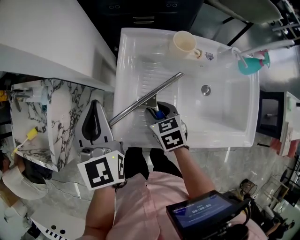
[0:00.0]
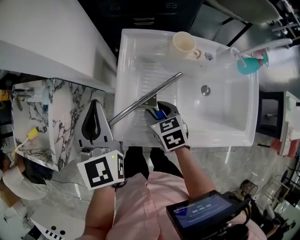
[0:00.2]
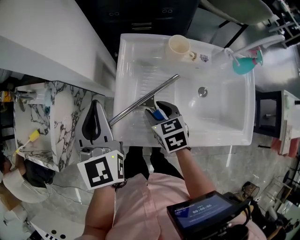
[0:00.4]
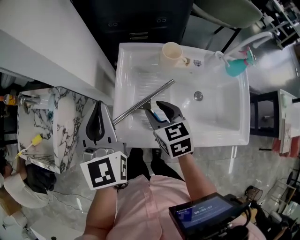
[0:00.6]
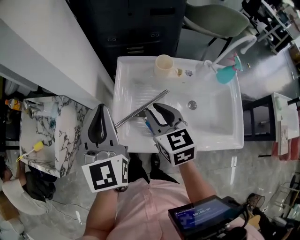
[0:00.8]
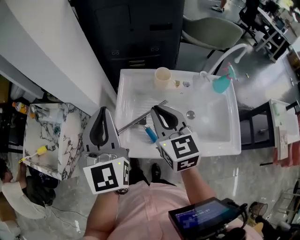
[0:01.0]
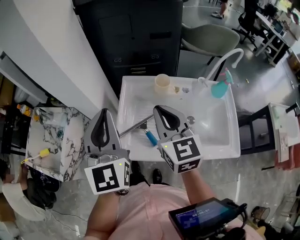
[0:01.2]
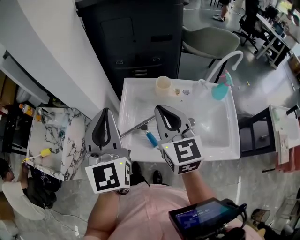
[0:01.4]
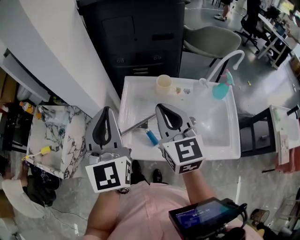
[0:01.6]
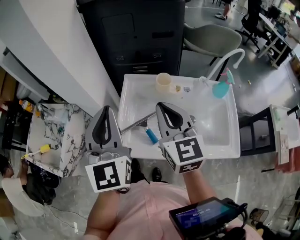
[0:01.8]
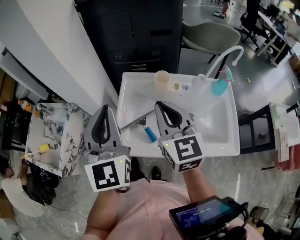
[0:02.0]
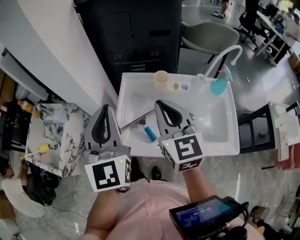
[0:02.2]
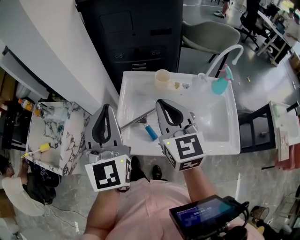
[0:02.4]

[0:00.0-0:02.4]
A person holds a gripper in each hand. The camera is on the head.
0.0 to 1.2 s: The right gripper travels upward by some 30 cm, angles its fingers upward, by roughly 40 degrees, and closes its fingers; the left gripper moves upward and backward, about 20 cm, and rotates about 20 degrees.
1.2 to 2.4 s: There are only small adjustments of the grippers.

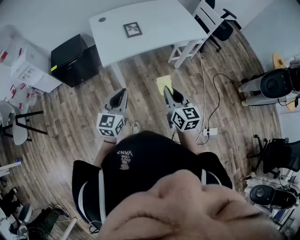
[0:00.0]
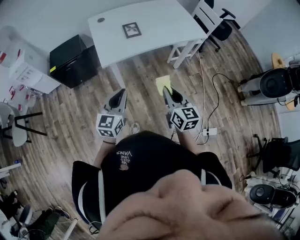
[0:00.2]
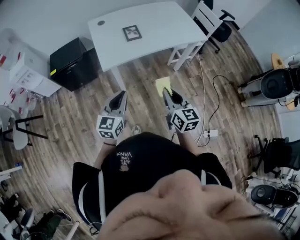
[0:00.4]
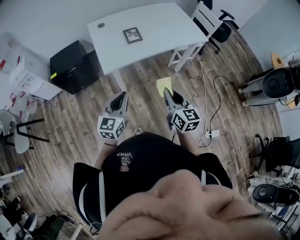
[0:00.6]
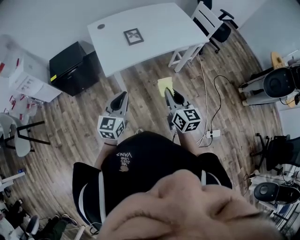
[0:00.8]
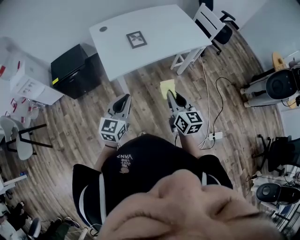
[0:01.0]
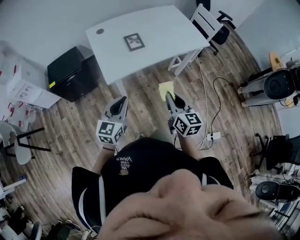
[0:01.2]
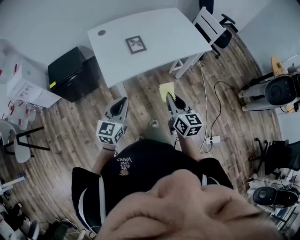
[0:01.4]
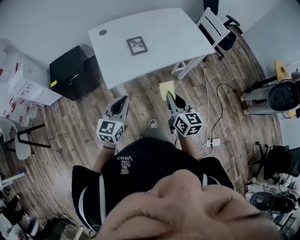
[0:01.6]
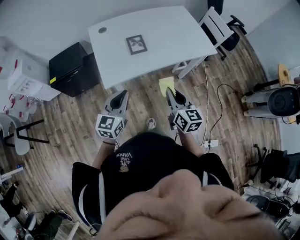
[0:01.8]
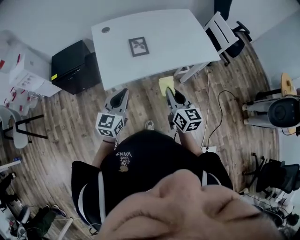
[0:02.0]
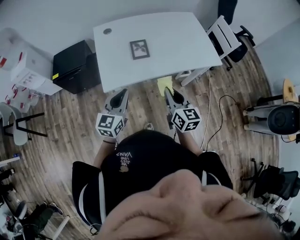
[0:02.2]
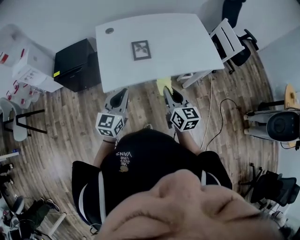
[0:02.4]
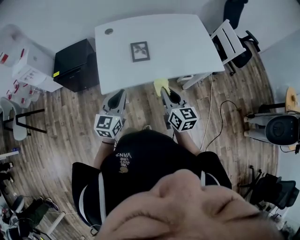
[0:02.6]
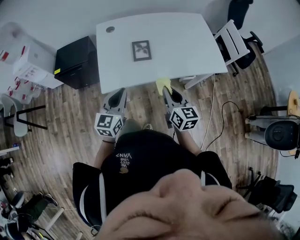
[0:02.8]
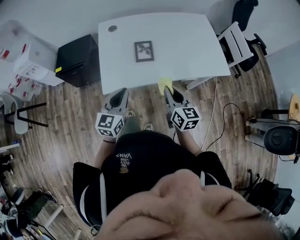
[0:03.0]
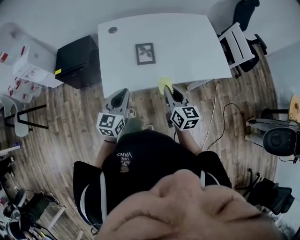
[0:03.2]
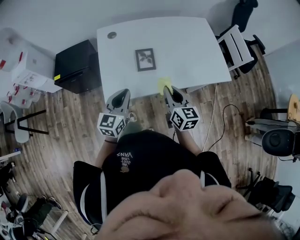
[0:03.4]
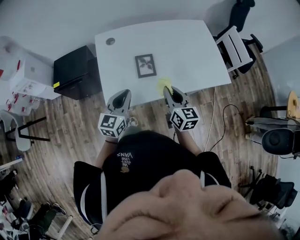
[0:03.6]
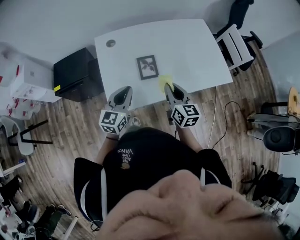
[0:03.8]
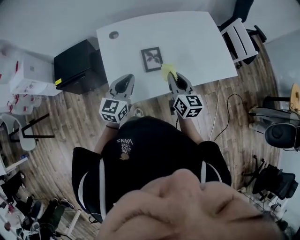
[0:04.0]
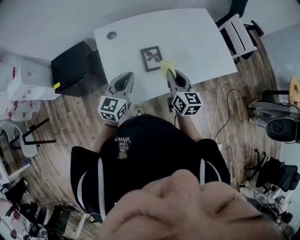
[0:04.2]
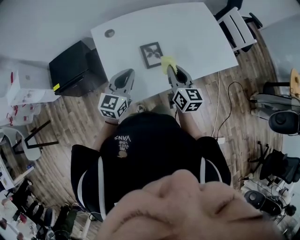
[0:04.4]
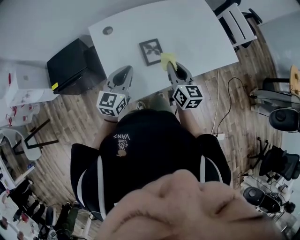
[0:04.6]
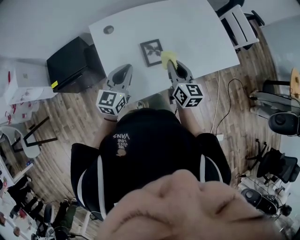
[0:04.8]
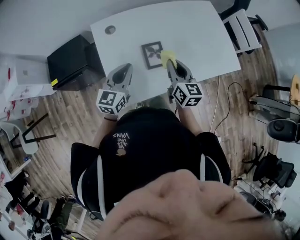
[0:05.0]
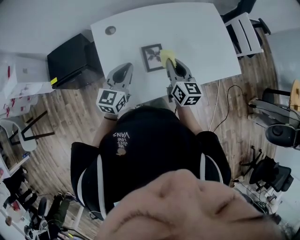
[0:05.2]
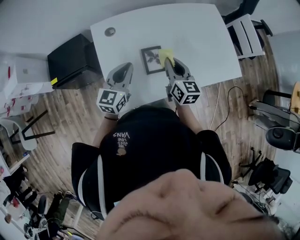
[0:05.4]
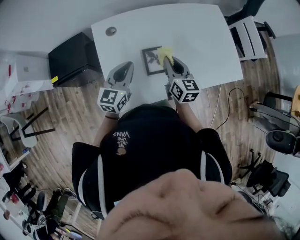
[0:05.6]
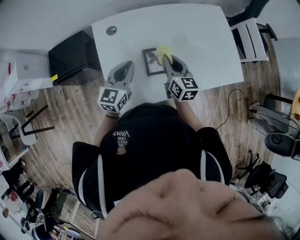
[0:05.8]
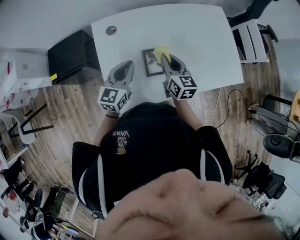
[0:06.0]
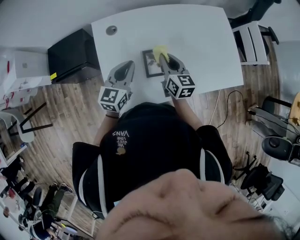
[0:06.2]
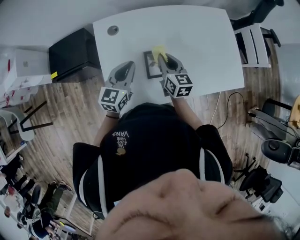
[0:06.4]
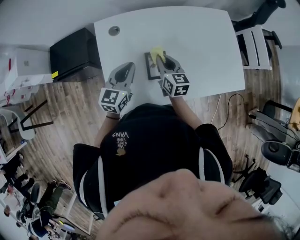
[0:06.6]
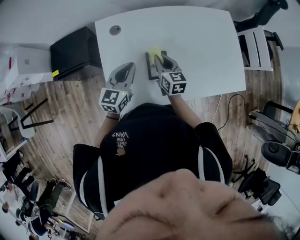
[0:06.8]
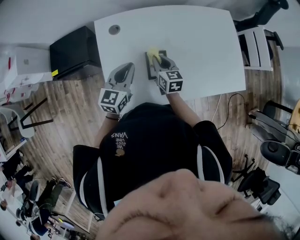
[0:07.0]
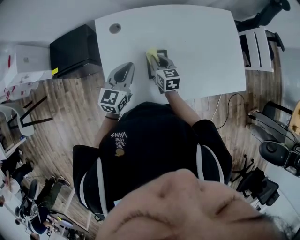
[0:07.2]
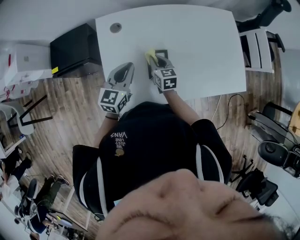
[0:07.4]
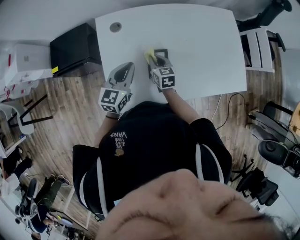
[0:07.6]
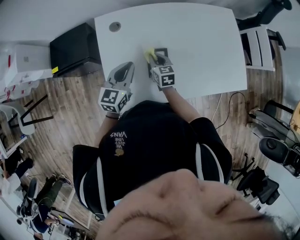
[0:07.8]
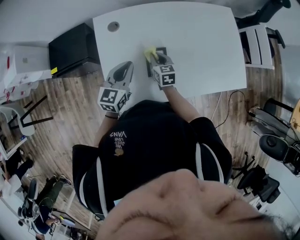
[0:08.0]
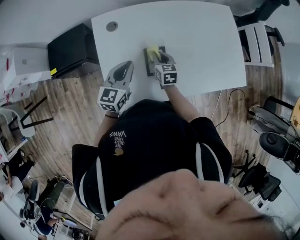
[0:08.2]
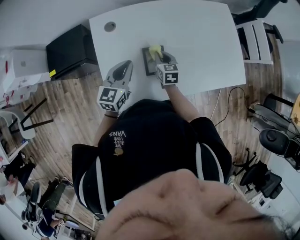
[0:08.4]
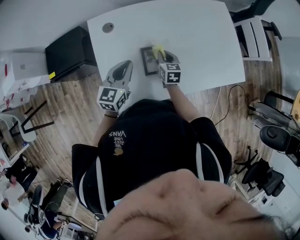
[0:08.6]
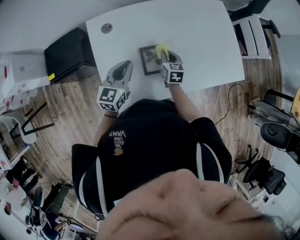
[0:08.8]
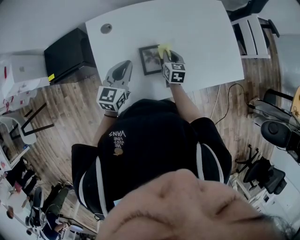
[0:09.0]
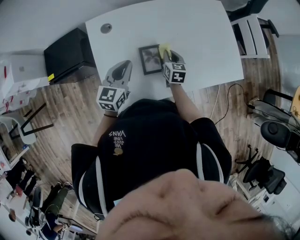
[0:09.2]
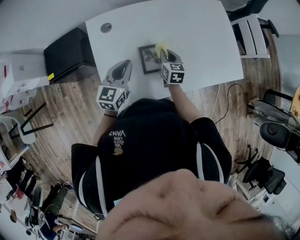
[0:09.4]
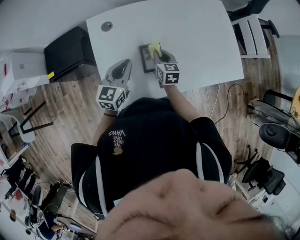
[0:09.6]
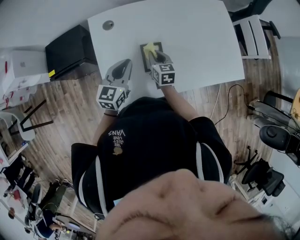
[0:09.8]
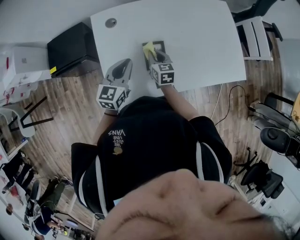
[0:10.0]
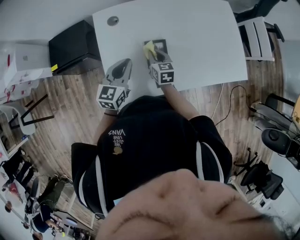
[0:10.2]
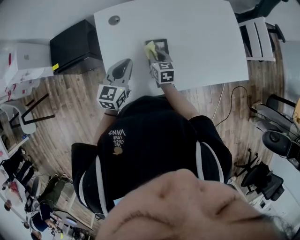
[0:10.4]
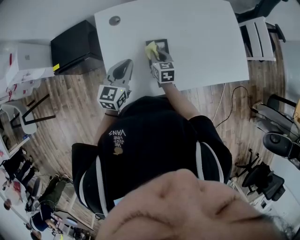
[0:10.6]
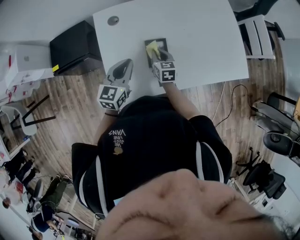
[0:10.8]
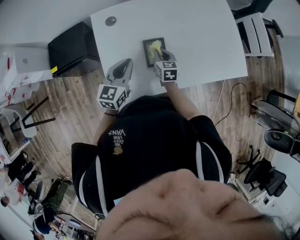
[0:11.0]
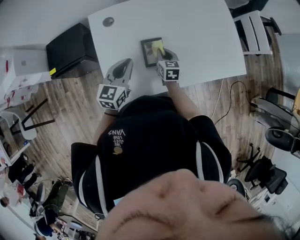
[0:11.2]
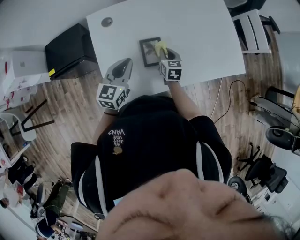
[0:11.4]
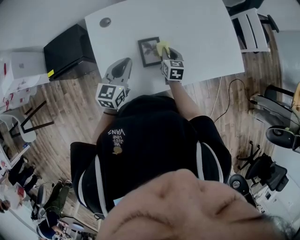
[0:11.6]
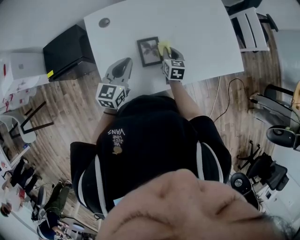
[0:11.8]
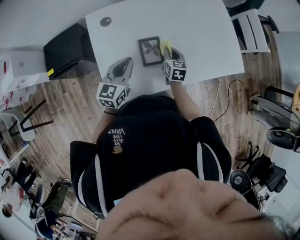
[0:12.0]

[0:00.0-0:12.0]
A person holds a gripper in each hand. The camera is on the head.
0.0 to 1.6 s: Both grippers travel together forward, roughly 15 cm.
1.6 to 3.0 s: The two grippers go about 15 cm forward.
3.0 to 4.4 s: The two grippers go roughly 20 cm forward and to the left.
4.4 to 6.0 s: Both grippers travel together forward, approximately 10 cm.
6.0 to 7.6 s: The right gripper shifts roughly 15 cm downward and to the left.
7.6 to 9.0 s: The right gripper travels to the right by roughly 10 cm.
9.0 to 10.4 s: The right gripper is displaced to the left by about 10 cm.
10.4 to 12.0 s: The right gripper moves to the right, some 10 cm.

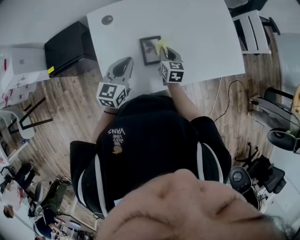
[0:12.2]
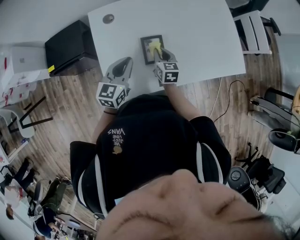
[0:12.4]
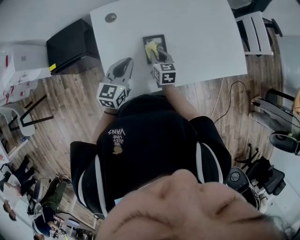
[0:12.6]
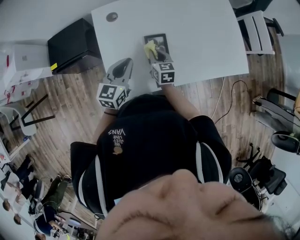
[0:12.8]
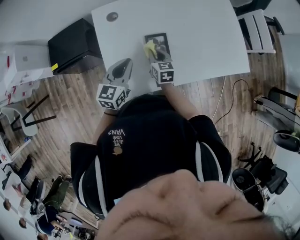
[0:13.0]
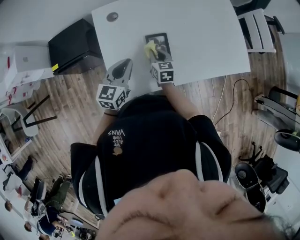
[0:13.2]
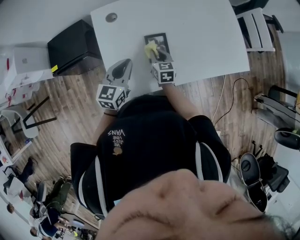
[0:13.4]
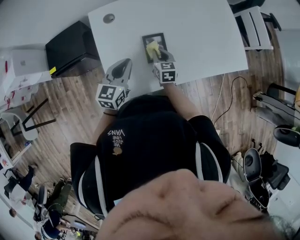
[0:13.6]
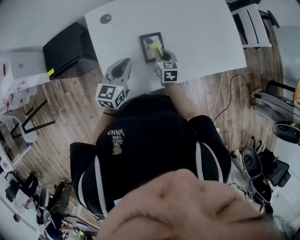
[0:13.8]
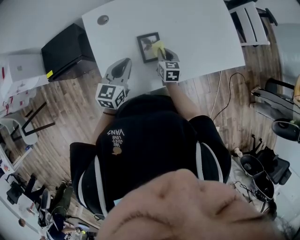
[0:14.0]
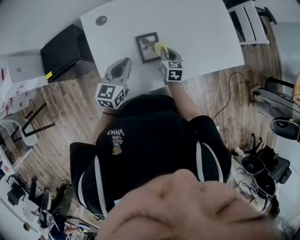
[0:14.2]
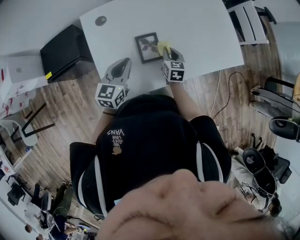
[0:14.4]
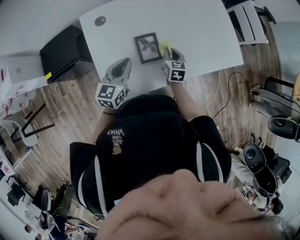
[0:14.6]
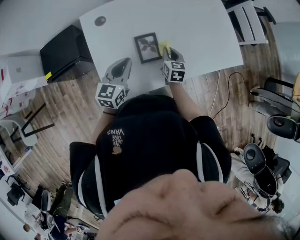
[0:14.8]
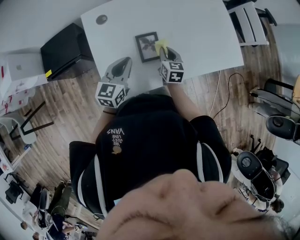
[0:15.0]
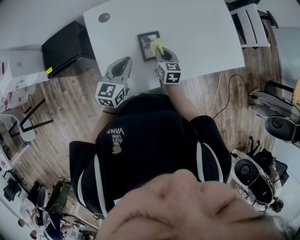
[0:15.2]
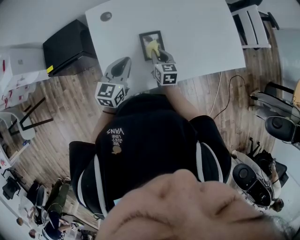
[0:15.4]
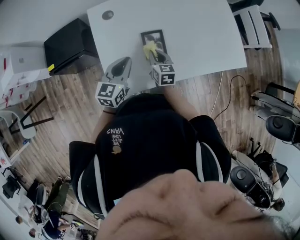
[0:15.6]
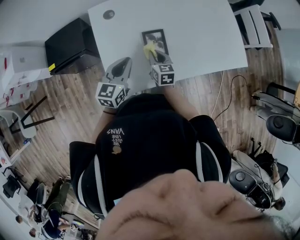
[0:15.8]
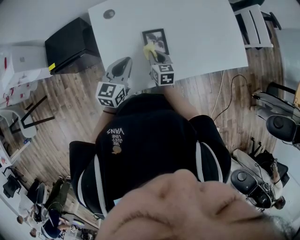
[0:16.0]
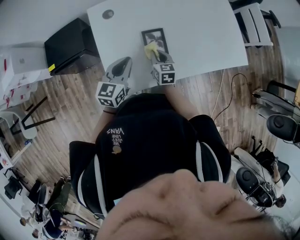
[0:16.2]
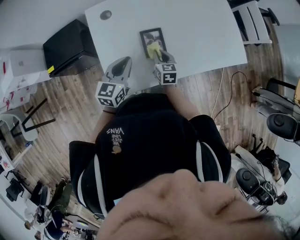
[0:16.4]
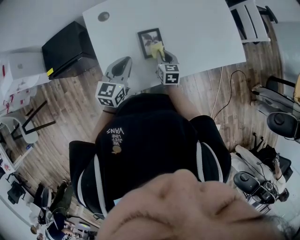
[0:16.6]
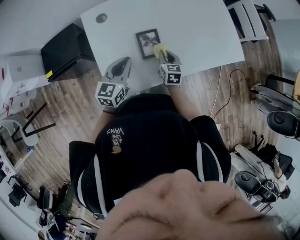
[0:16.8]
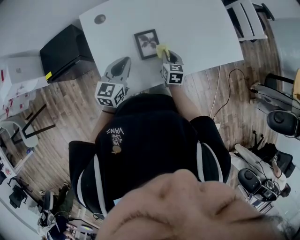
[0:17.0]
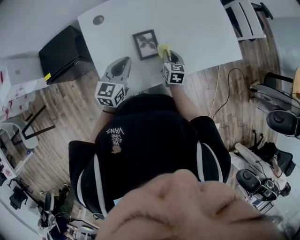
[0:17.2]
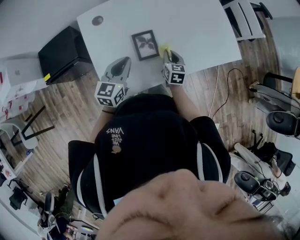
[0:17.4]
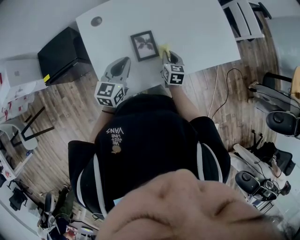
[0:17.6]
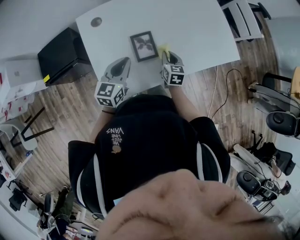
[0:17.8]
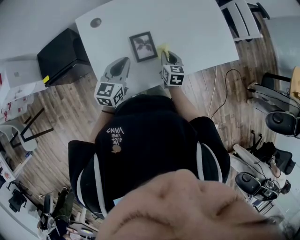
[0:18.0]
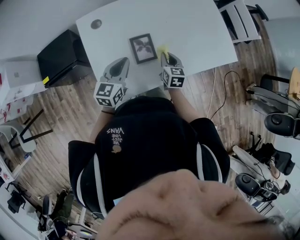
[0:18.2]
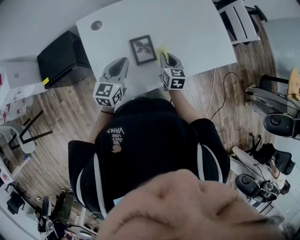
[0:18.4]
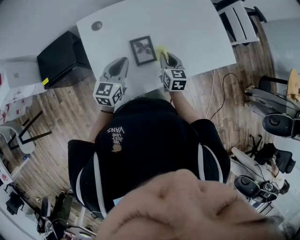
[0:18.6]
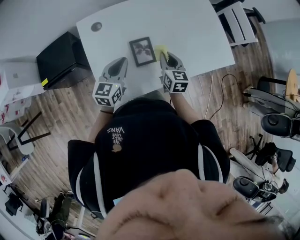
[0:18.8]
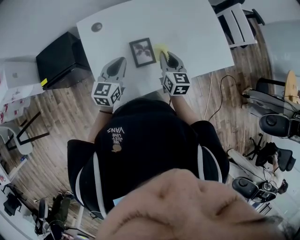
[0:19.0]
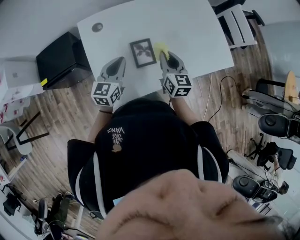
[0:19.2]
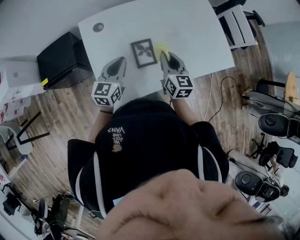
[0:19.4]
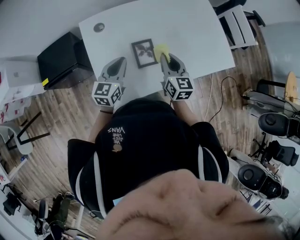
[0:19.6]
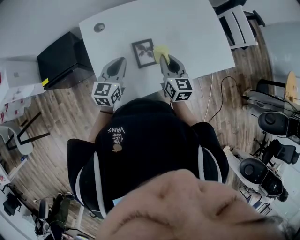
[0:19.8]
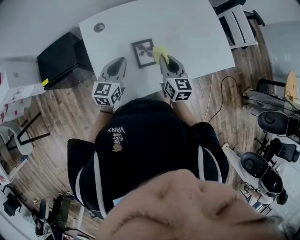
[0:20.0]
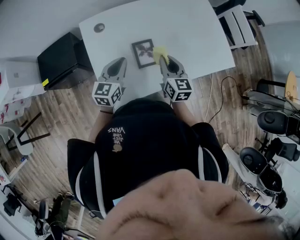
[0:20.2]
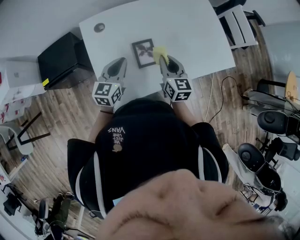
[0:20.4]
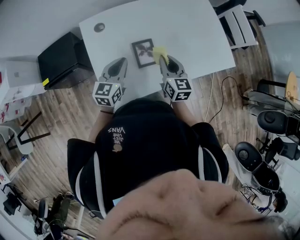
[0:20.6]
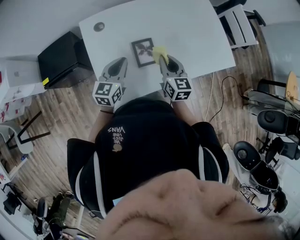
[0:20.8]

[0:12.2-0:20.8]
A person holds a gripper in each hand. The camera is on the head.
12.2 to 13.6 s: The right gripper travels to the left by roughly 5 cm.
13.6 to 15.0 s: The right gripper shifts some 5 cm to the right.
15.0 to 16.6 s: The right gripper reaches roughly 10 cm to the left, then returns.
16.6 to 18.0 s: The right gripper shifts about 5 cm to the right.
18.0 to 19.4 s: The right gripper shifts approximately 15 cm upward.
19.4 to 20.8 s: The grippers stay close to where they were, moving slightly.

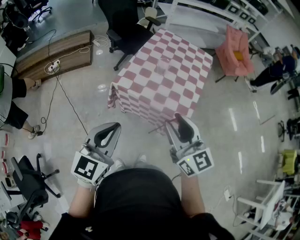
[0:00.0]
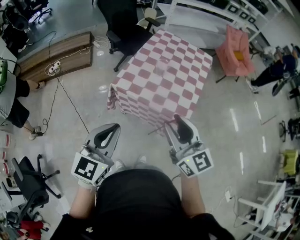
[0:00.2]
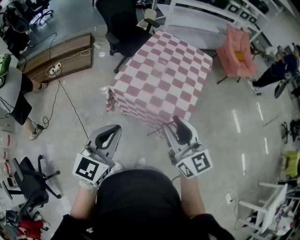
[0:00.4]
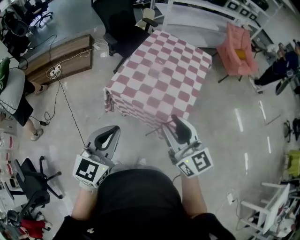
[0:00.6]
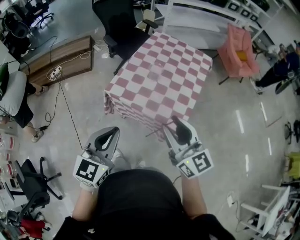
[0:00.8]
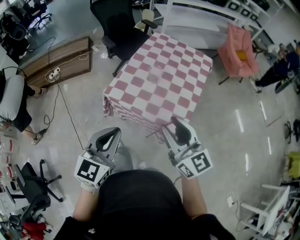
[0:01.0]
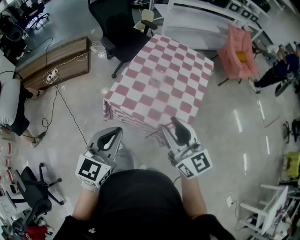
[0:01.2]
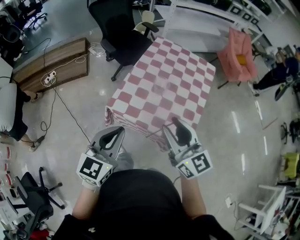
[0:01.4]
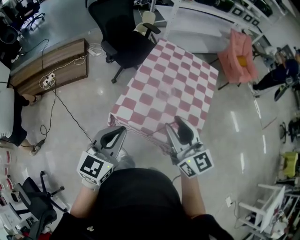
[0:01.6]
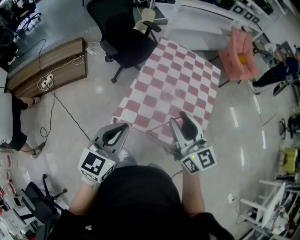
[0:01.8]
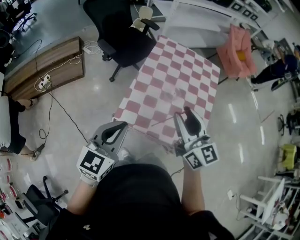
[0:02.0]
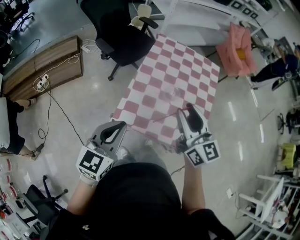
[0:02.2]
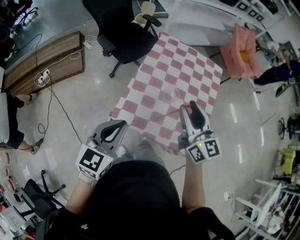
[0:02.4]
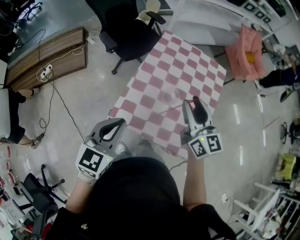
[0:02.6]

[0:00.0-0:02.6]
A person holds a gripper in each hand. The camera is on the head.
0.0 to 1.2 s: The grippers both shift forward and to the right by some 10 cm.
1.2 to 2.6 s: The left gripper heads forward and to the left, covering approximately 20 cm. Meanwhile the right gripper is displaced forward by roughly 25 cm.
